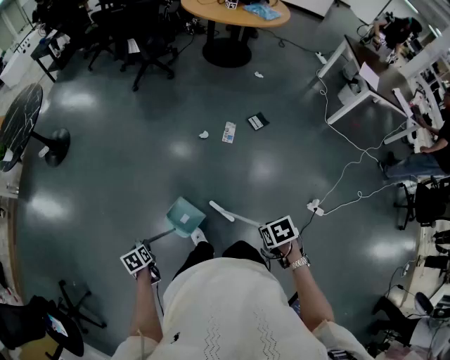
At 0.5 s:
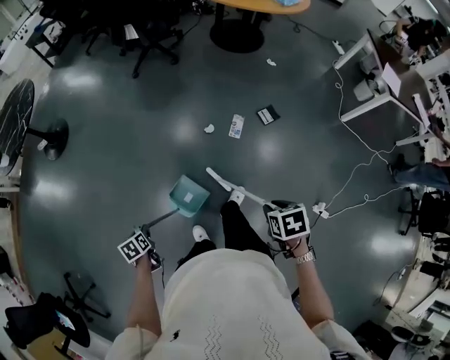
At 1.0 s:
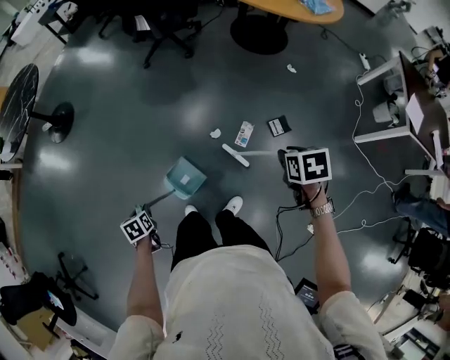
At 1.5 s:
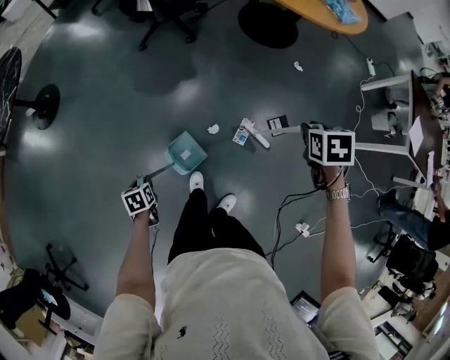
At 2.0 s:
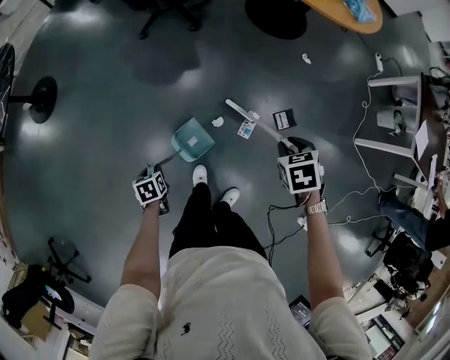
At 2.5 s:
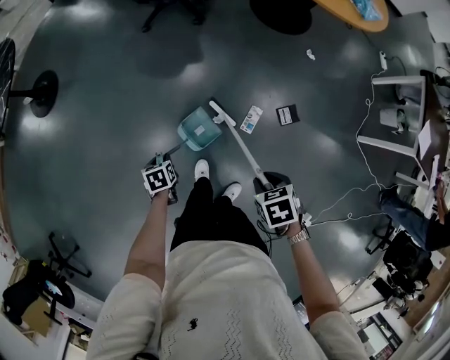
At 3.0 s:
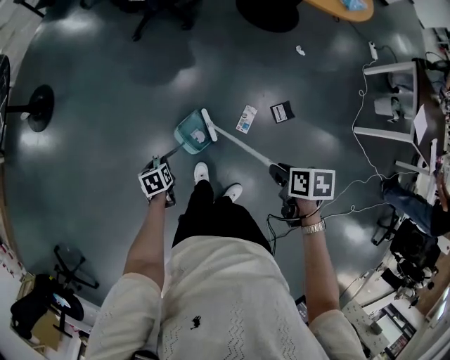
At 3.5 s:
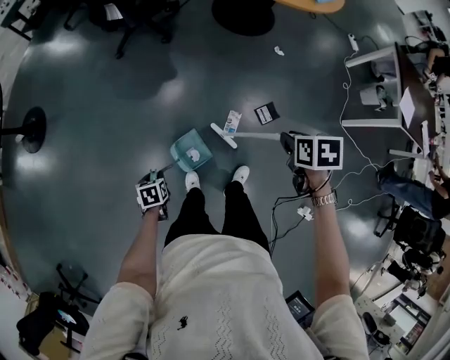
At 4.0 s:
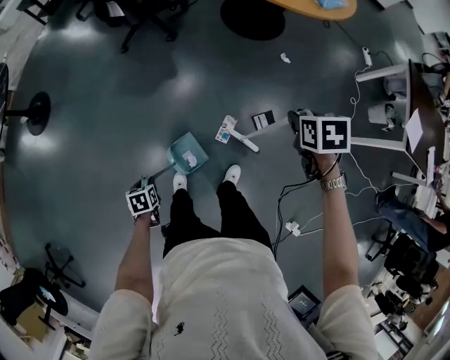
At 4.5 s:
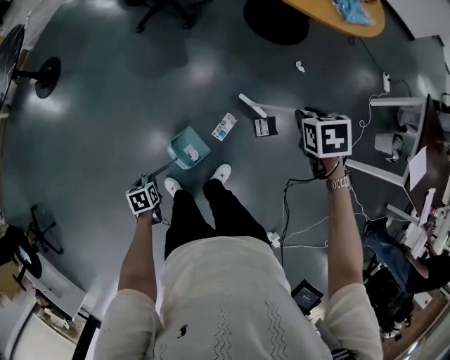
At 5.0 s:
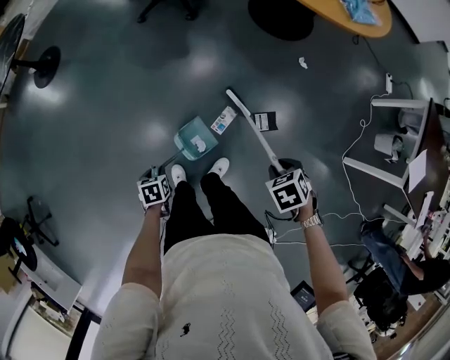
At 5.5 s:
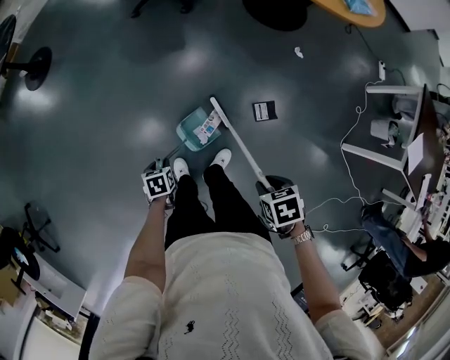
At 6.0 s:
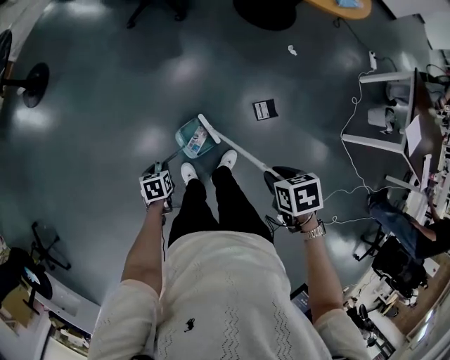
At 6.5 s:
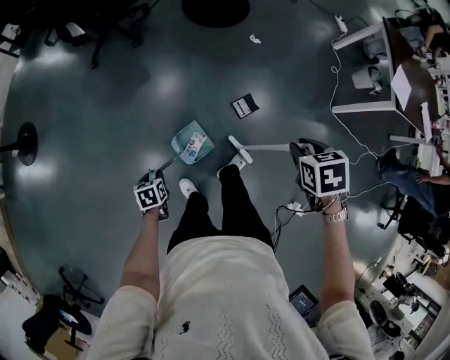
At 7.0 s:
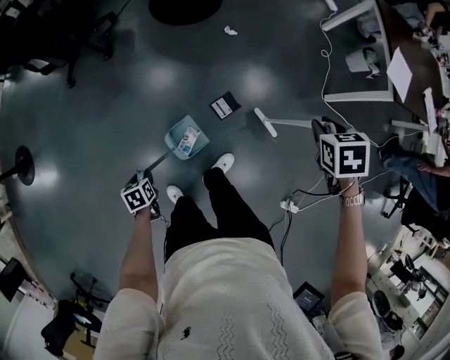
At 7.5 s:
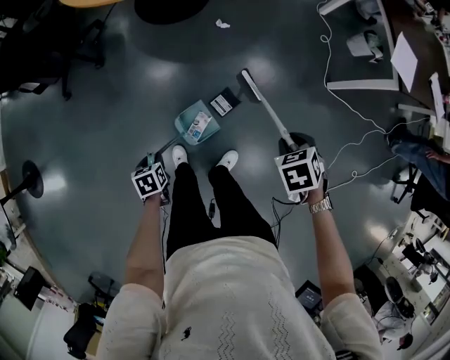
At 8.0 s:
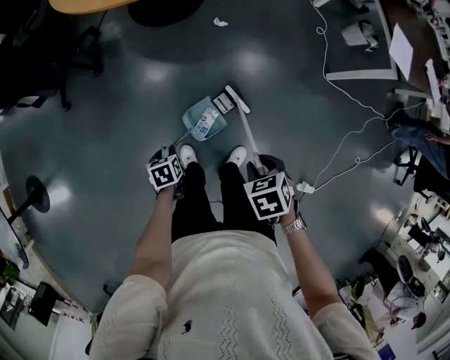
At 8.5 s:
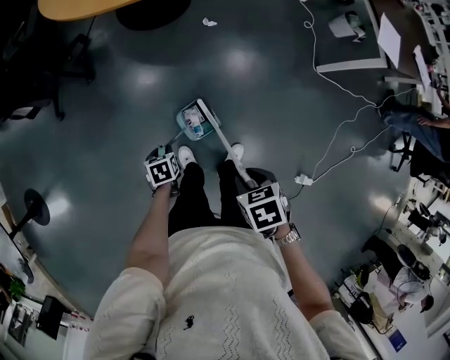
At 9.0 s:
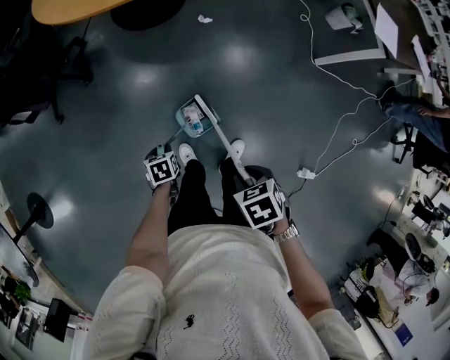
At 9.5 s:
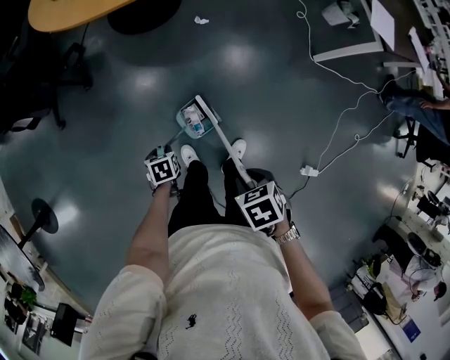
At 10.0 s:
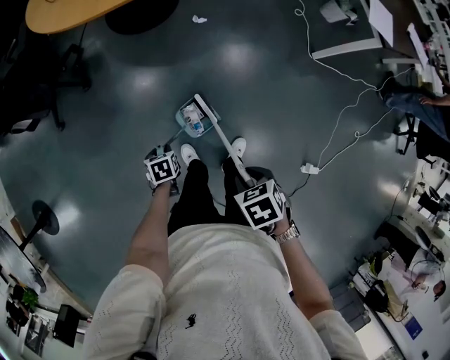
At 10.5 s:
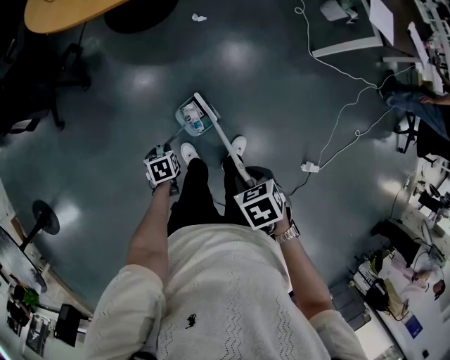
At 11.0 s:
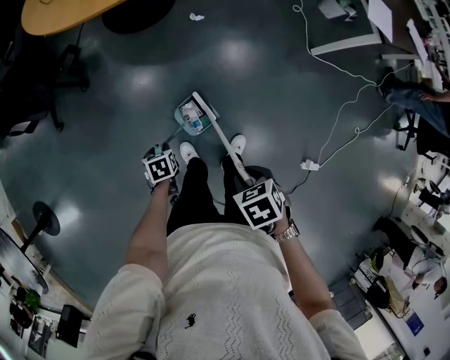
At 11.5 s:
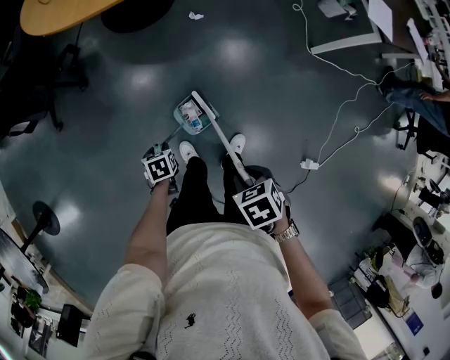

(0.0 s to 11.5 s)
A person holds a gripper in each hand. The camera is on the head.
0.0 s - 2.0 s: The left gripper moves roughly 60 cm.
2.0 s - 4.0 s: The left gripper ends up about 15 cm from where it was.
6.0 s - 7.5 s: The left gripper changes place by about 40 cm, and swivels about 20 degrees.
7.5 s - 9.5 s: The left gripper changes place by approximately 5 cm.

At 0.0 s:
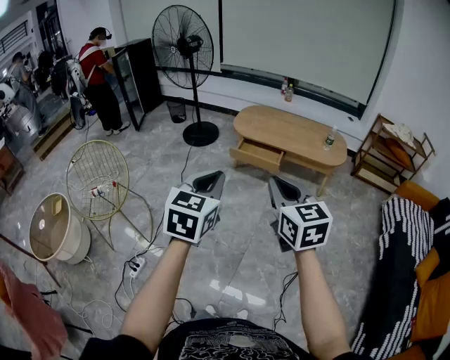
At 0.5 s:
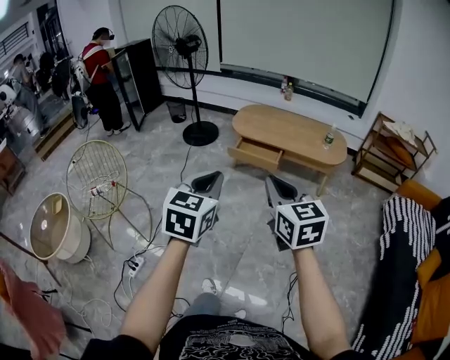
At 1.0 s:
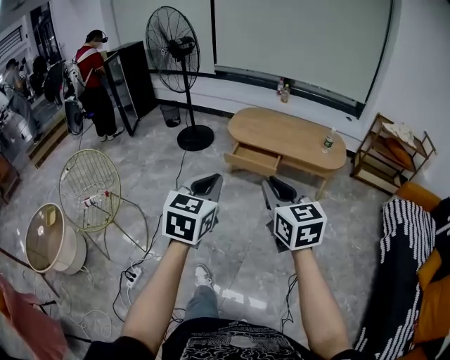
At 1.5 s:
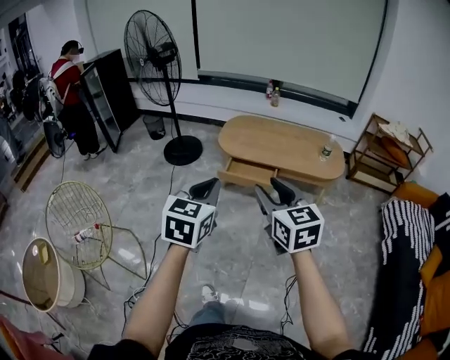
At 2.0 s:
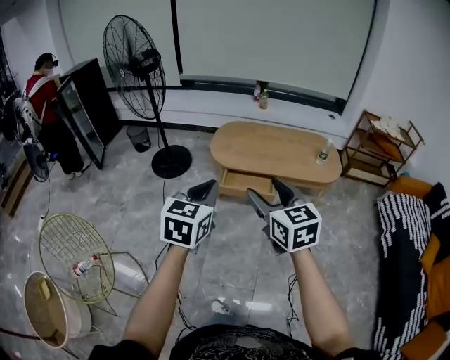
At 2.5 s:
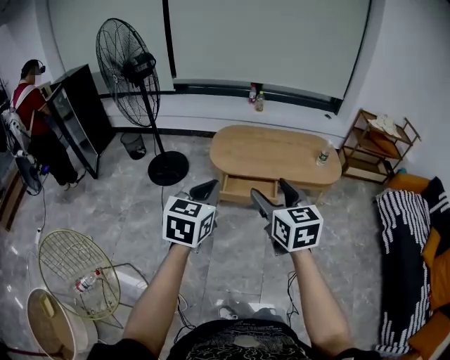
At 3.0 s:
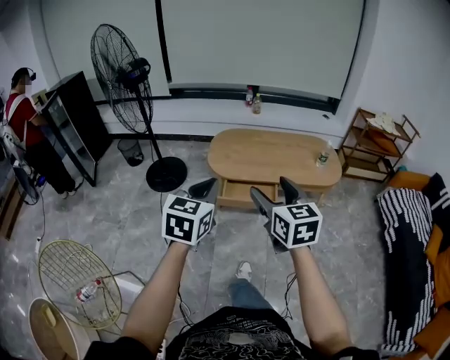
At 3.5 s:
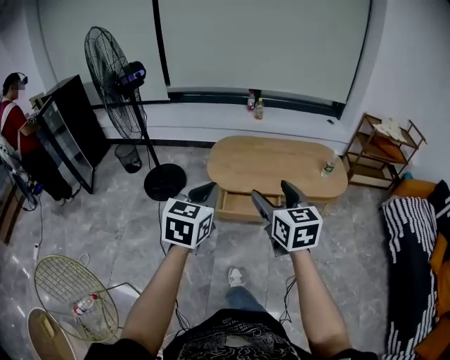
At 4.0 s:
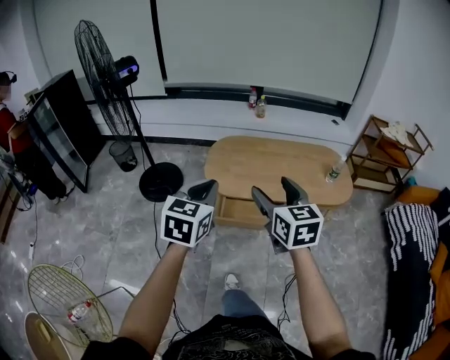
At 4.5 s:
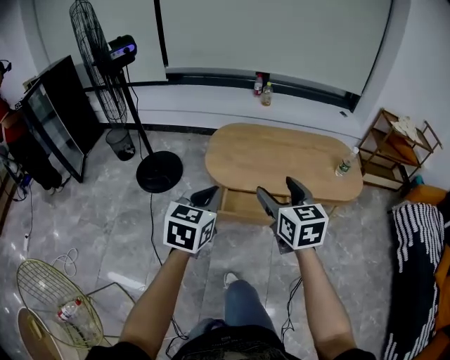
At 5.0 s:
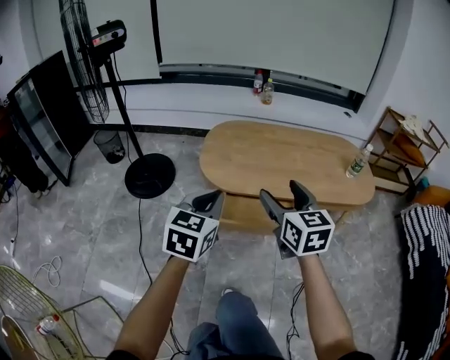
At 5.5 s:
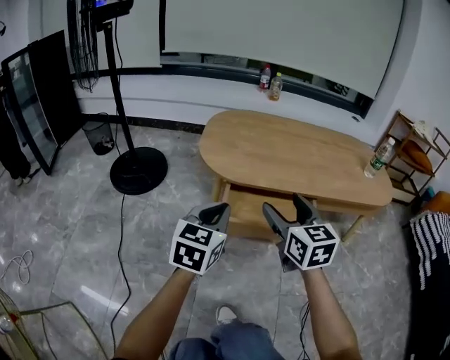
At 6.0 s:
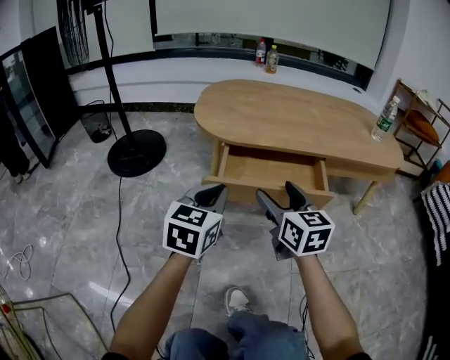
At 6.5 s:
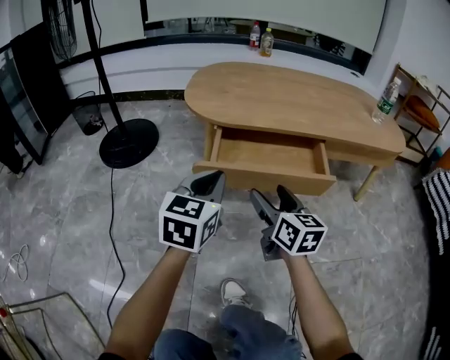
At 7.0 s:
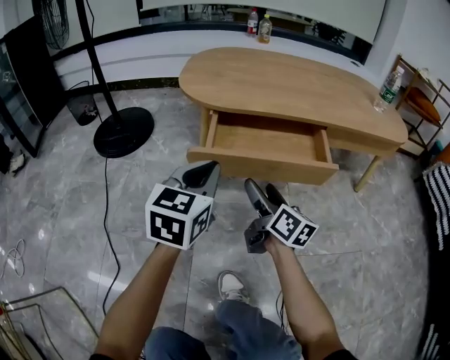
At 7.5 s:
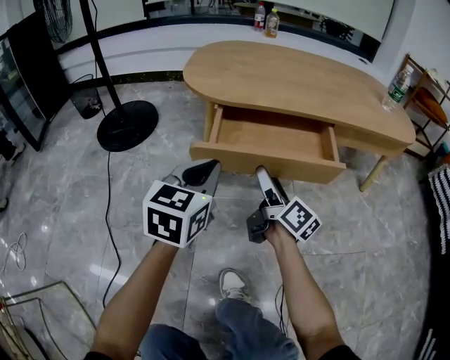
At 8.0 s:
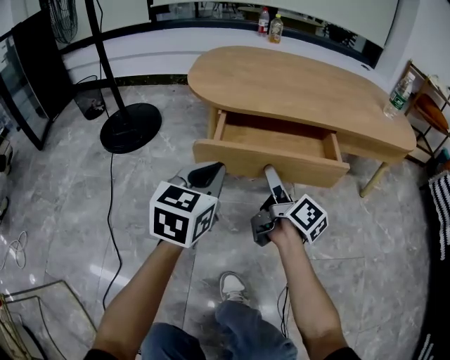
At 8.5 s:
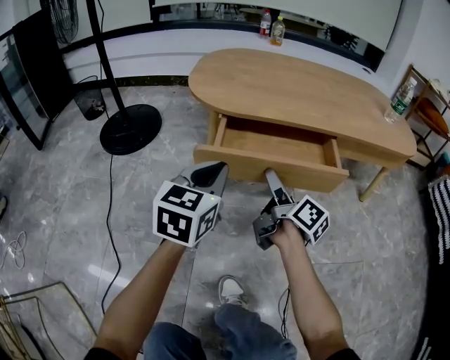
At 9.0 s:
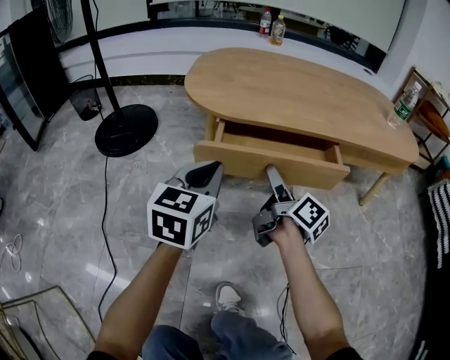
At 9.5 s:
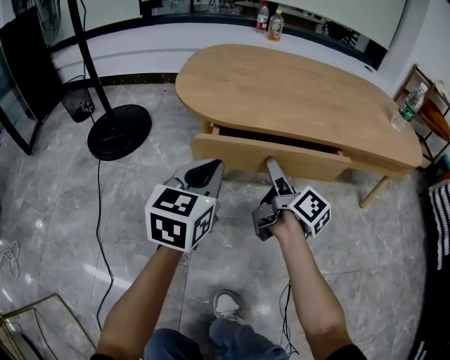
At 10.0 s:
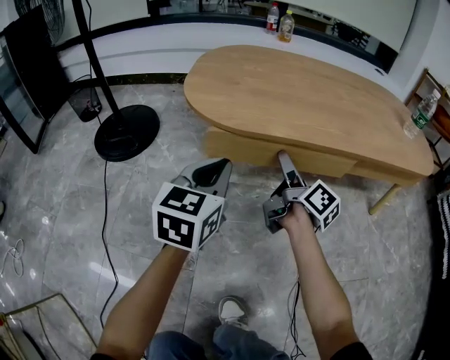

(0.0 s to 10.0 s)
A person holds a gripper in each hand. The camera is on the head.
0.0 s - 2.0 s: The grippers both shift forward by some 30 cm. The right gripper opens up.
2.0 s - 4.0 s: The grippers both shift forward by approximately 25 cm.
4.0 s - 6.0 s: The two grippers go roughly 50 cm downward.
6.0 s - 8.0 s: The right gripper is displaced downward by roughly 10 cm, and rolls clockwise, seen from behind, by roughly 60 degrees.
8.0 s - 10.0 s: The grippers both shift forward by about 10 cm.

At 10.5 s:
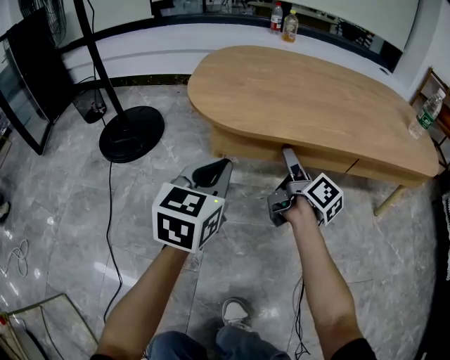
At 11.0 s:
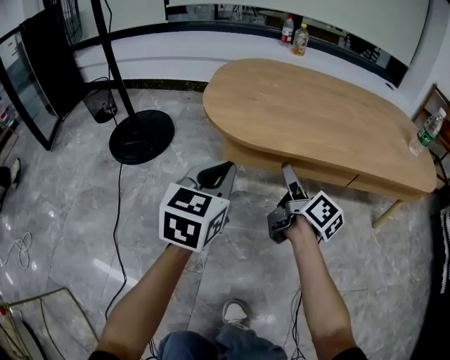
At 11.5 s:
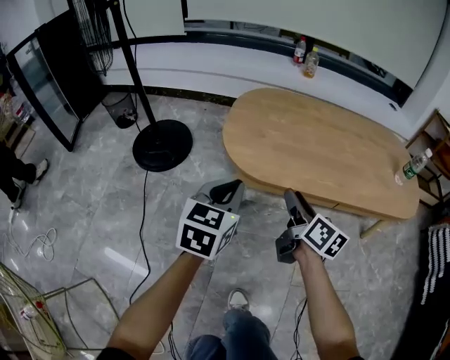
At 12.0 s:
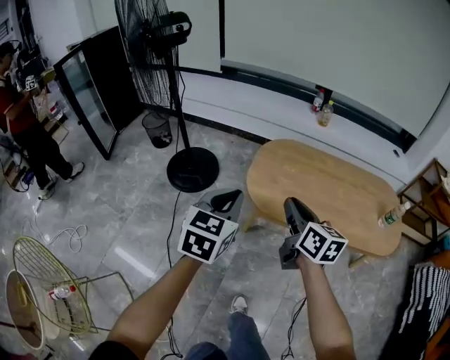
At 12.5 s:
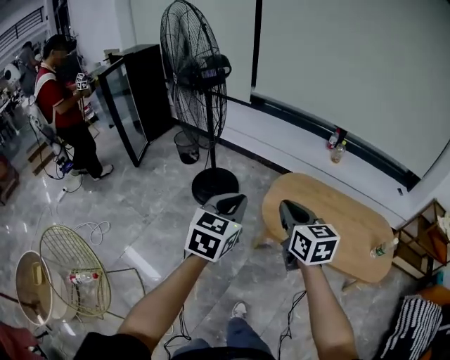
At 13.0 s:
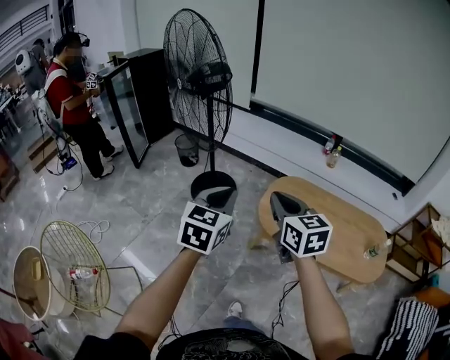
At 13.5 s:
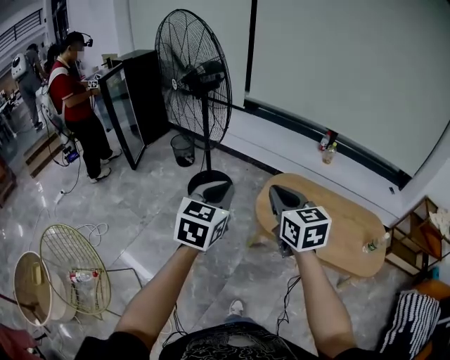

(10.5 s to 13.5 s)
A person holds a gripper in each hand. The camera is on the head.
10.5 s - 12.0 s: Both grippers move upward, about 40 cm. The right gripper turns by roughly 40 degrees, and closes up.
12.0 s - 13.5 s: The right gripper moves upward and to the left, about 25 cm, and swivels some 30 degrees, while the left gripper travels upward by about 20 cm.

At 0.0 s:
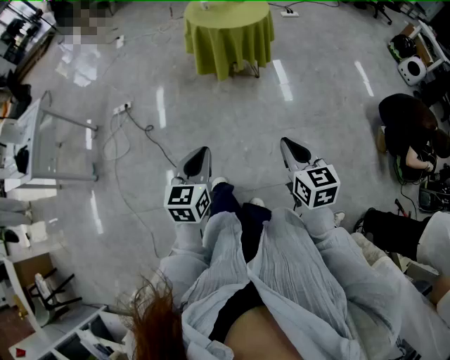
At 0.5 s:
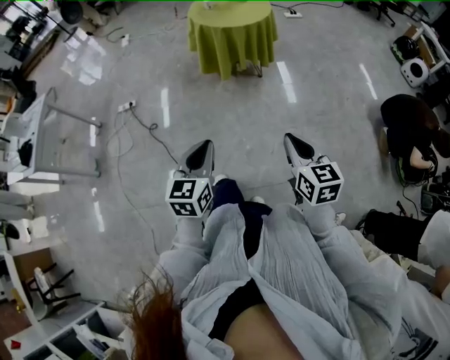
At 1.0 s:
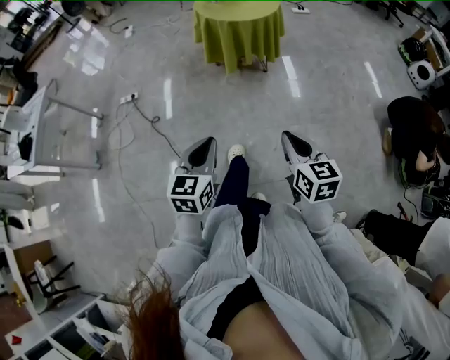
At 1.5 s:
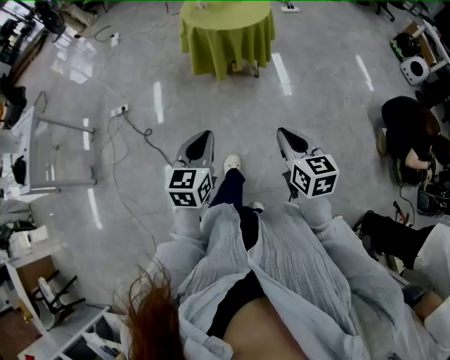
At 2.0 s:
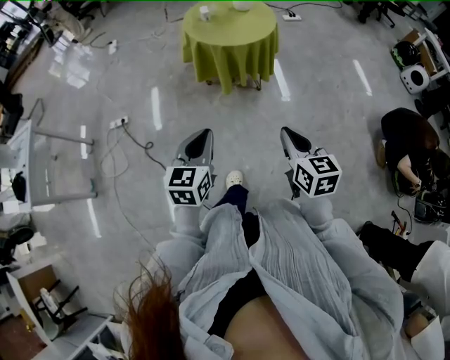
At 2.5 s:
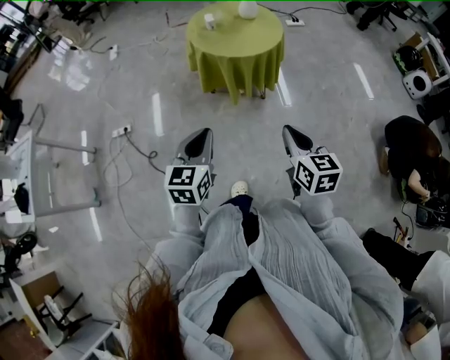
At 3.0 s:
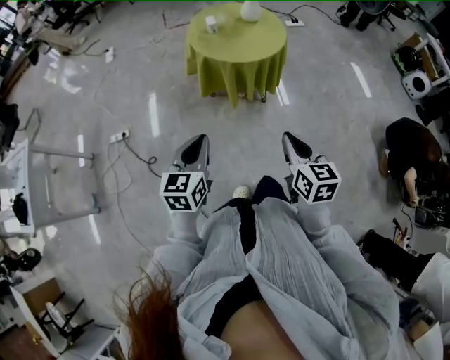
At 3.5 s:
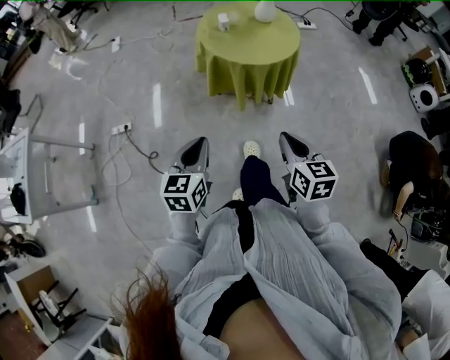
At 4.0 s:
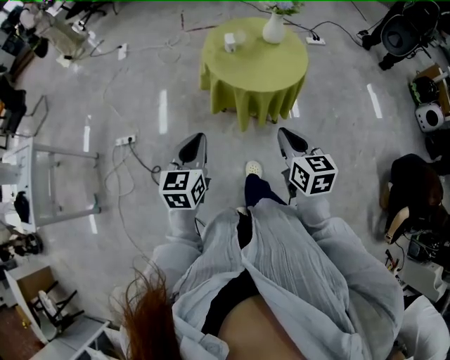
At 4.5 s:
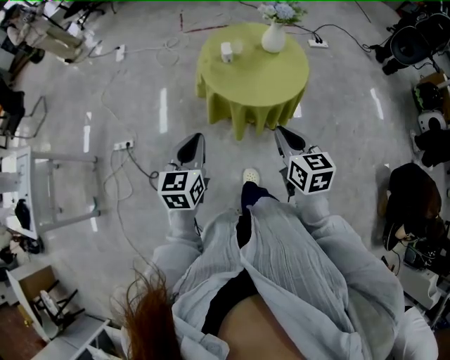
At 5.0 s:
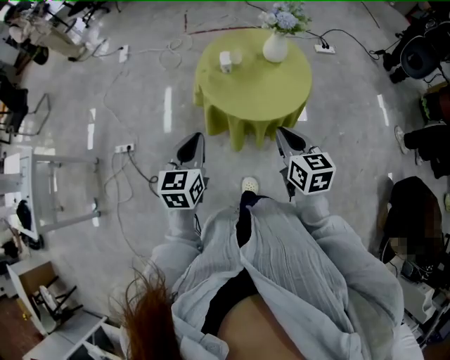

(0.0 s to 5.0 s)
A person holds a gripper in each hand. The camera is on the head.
0.0 s - 2.5 s: The two grippers go some 25 cm forward.
2.5 s - 5.0 s: Both grippers move forward, approximately 30 cm.
